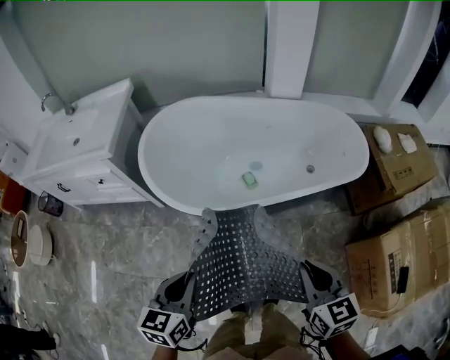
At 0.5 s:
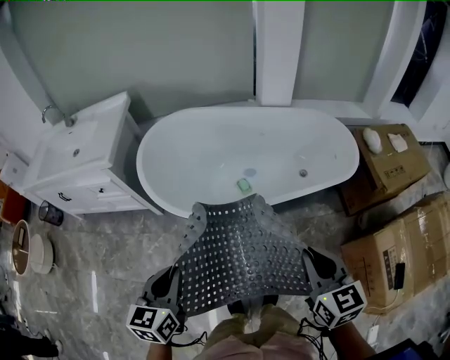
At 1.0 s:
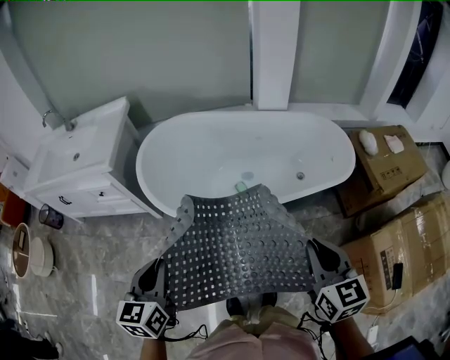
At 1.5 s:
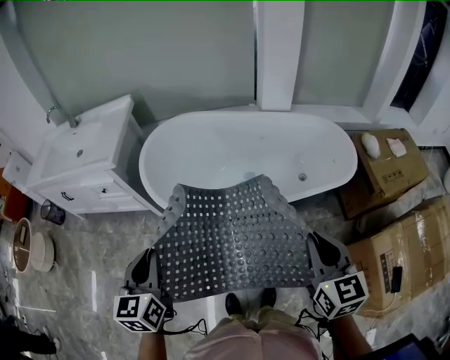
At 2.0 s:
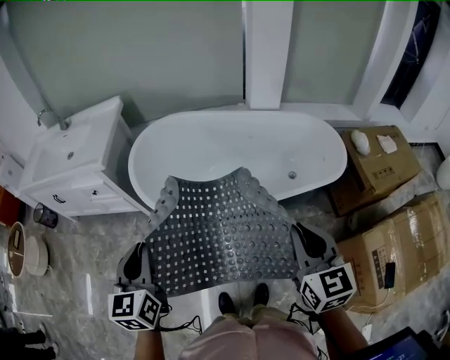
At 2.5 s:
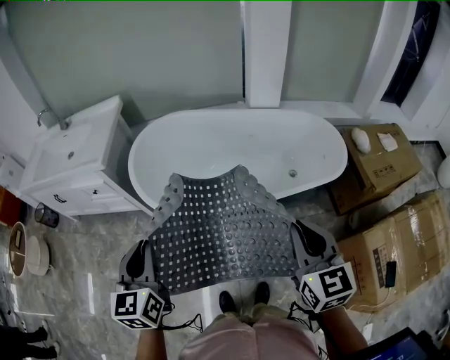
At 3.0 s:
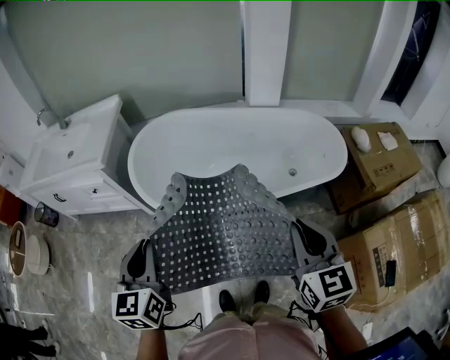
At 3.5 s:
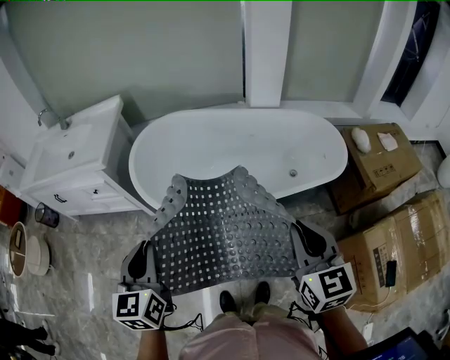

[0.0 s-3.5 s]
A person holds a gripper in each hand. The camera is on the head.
0.0 to 2.0 s: Both grippers travel together upward, roughly 10 cm. The left gripper rotates about 20 degrees.
2.0 to 3.5 s: The grippers move only a little.

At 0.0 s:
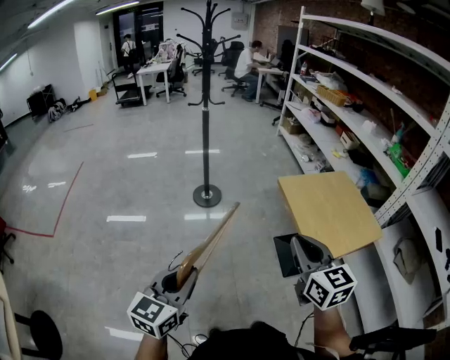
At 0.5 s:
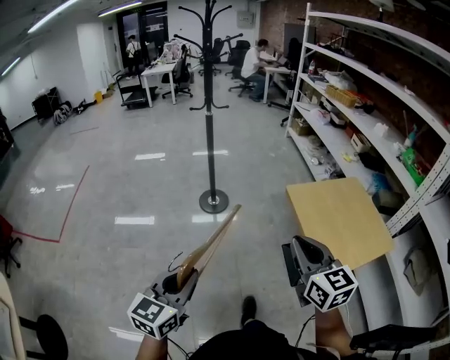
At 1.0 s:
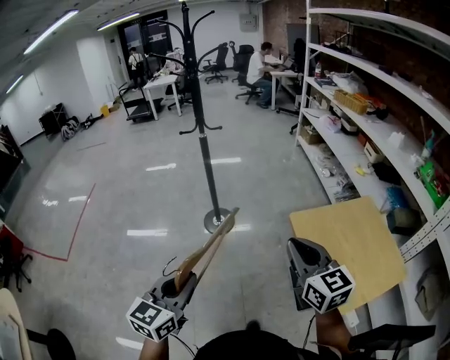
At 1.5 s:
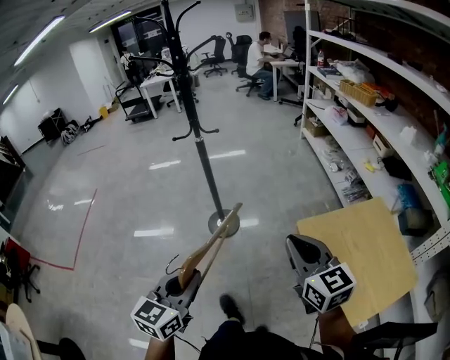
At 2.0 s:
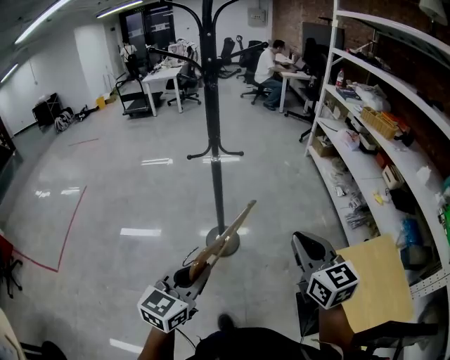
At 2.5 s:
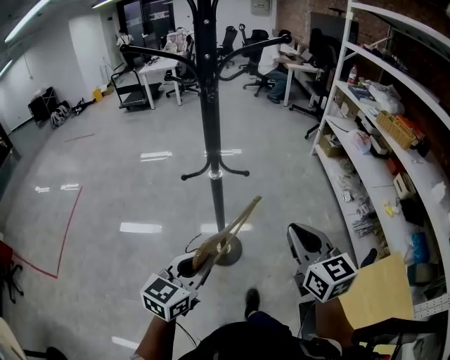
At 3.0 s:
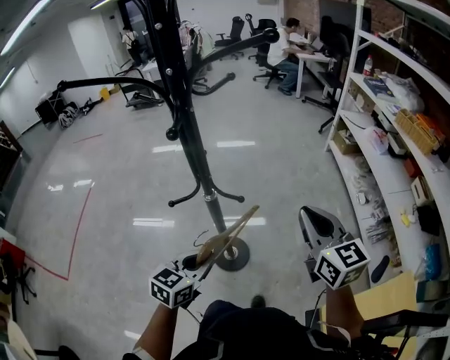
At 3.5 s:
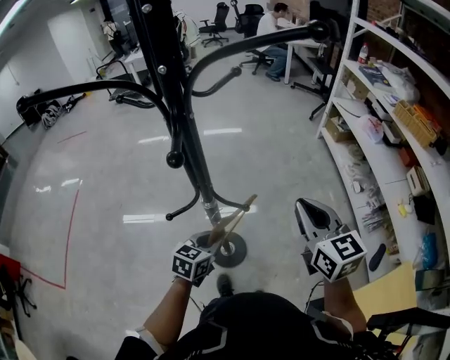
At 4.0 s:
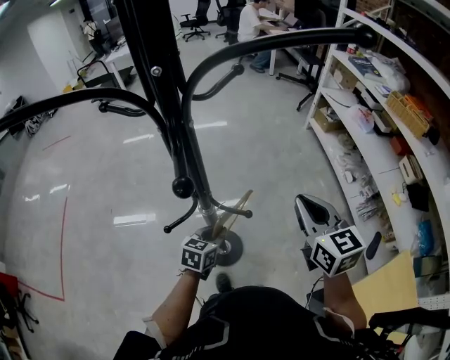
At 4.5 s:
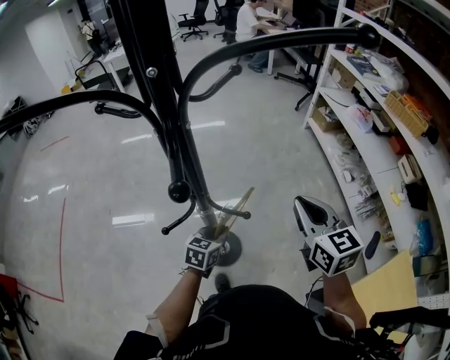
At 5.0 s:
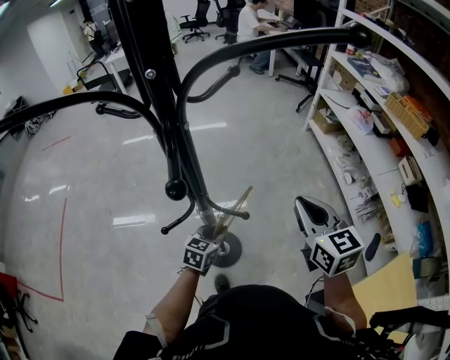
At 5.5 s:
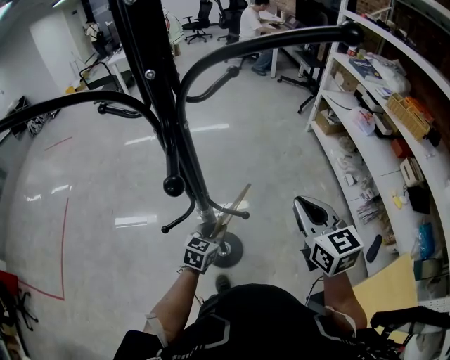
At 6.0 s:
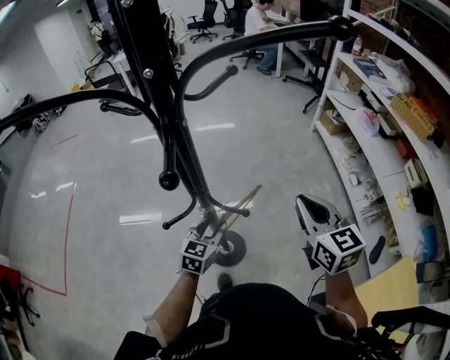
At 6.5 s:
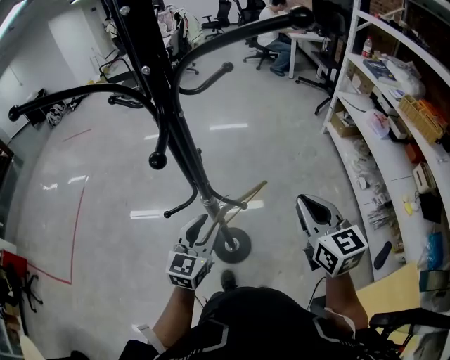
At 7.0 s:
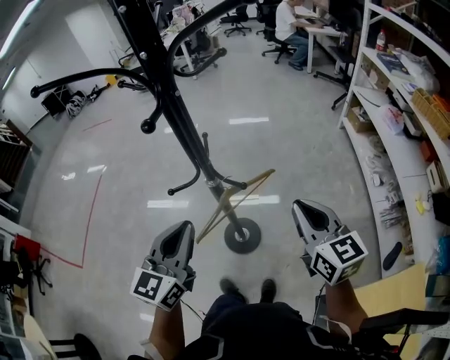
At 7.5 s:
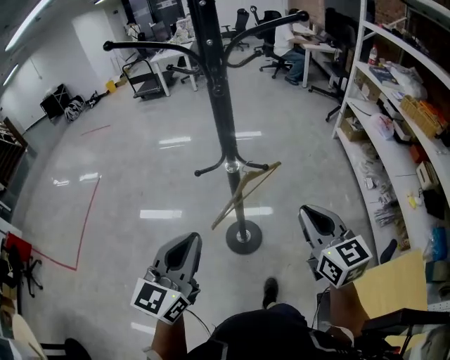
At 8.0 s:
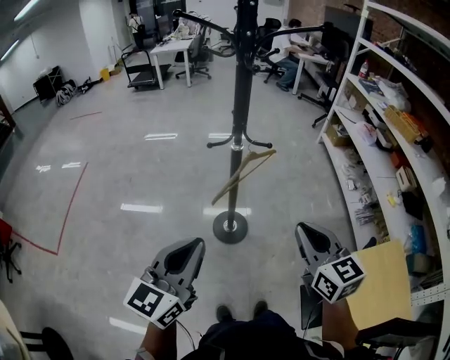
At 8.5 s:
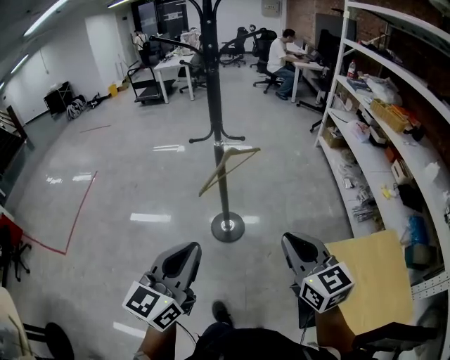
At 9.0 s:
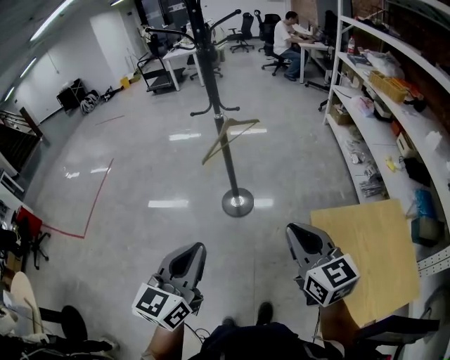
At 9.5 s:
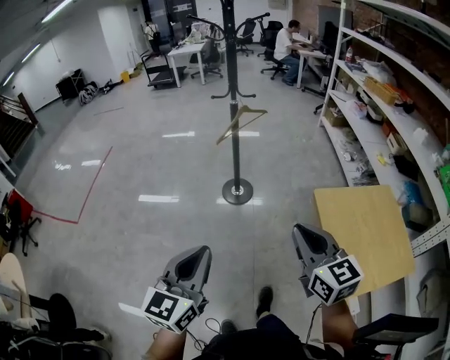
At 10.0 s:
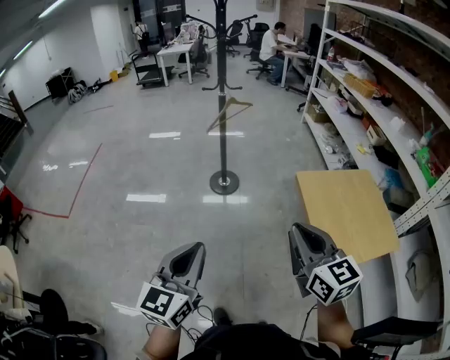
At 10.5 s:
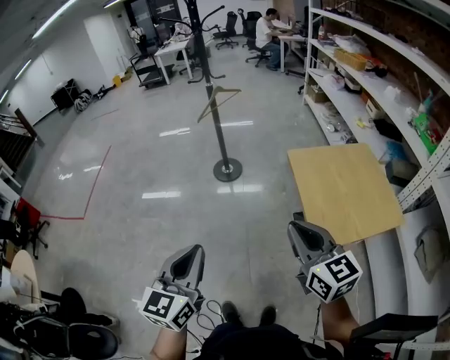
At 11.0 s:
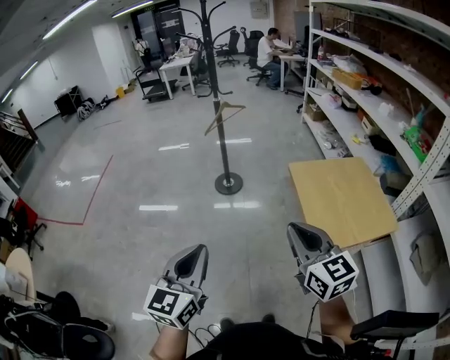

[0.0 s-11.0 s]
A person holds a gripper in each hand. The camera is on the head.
0.0 to 2.0 s: The two grippers travel together, forward, some 50 cm.
2.0 to 3.5 s: The left gripper is displaced forward and downward by approximately 40 cm, and swivels some 20 degrees. Meanwhile the right gripper is displaced forward by approximately 35 cm.
3.5 to 5.5 s: The left gripper shifts roughly 5 cm forward.
5.5 to 7.5 s: The left gripper travels upward and backward by about 40 cm, rotates approximately 30 degrees, and opens and closes again, while the right gripper is displaced backward by approximately 15 cm.
7.5 to 9.0 s: Both grippers move backward, some 35 cm.
9.0 to 11.0 s: The two grippers go roughly 35 cm backward.

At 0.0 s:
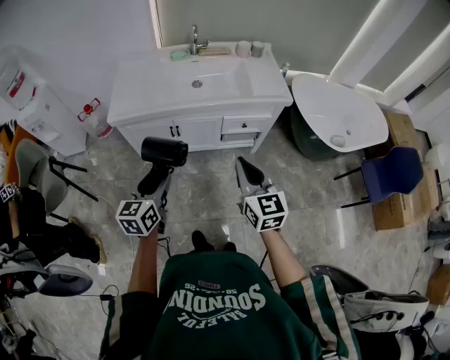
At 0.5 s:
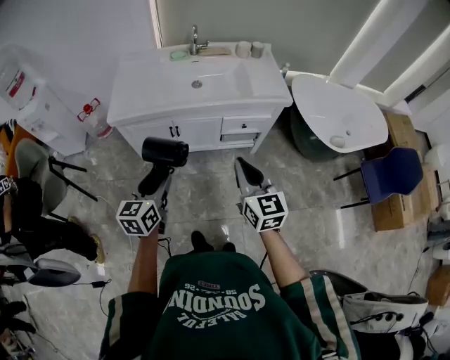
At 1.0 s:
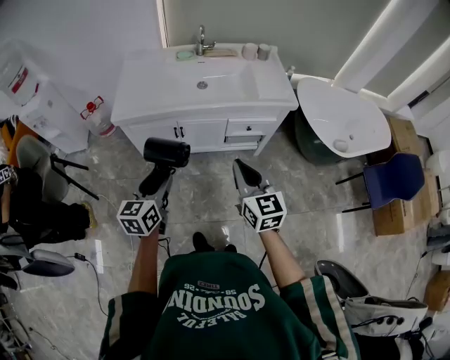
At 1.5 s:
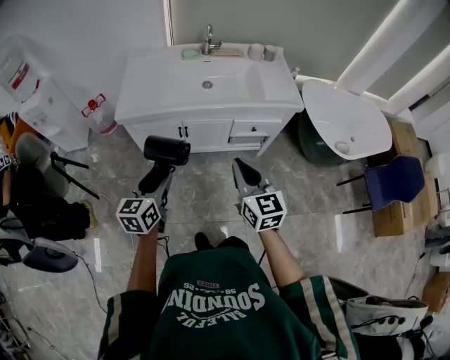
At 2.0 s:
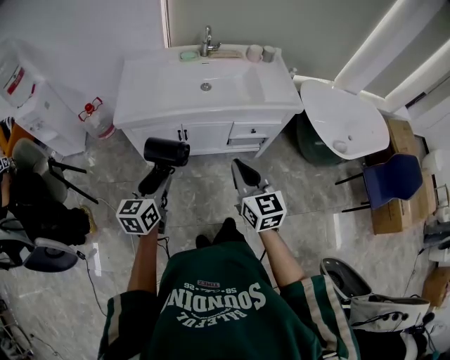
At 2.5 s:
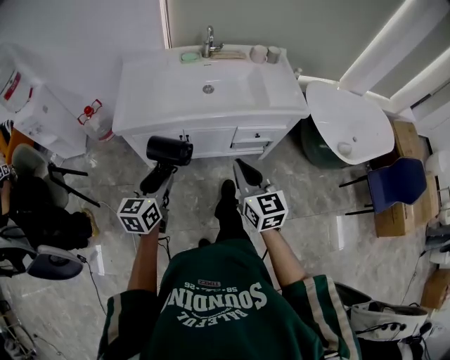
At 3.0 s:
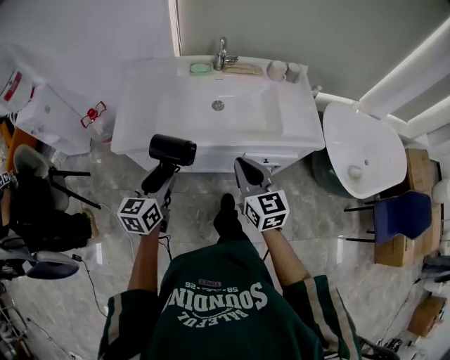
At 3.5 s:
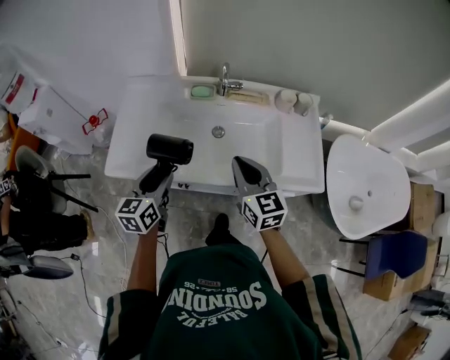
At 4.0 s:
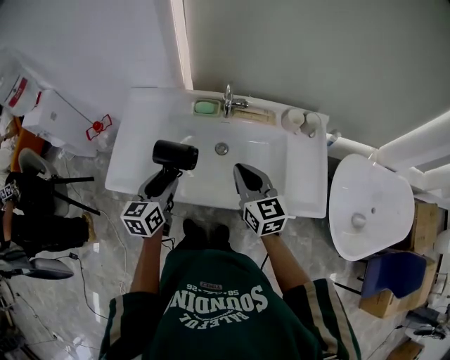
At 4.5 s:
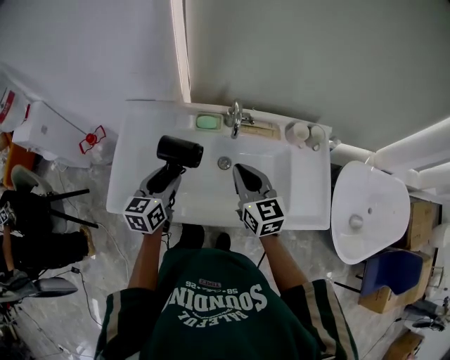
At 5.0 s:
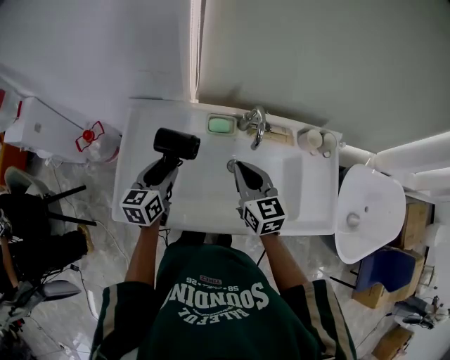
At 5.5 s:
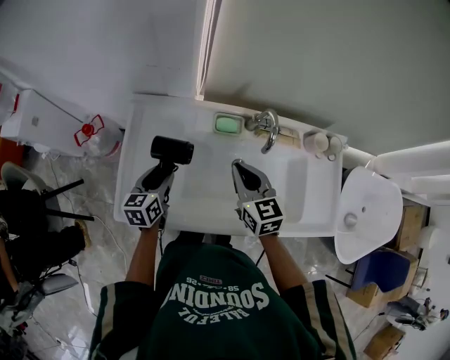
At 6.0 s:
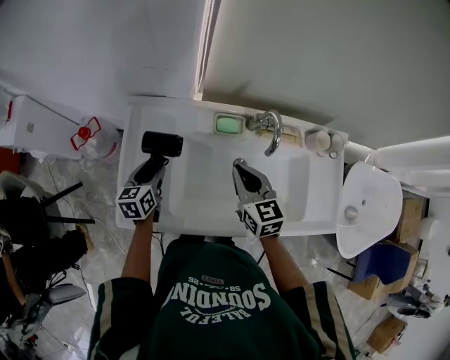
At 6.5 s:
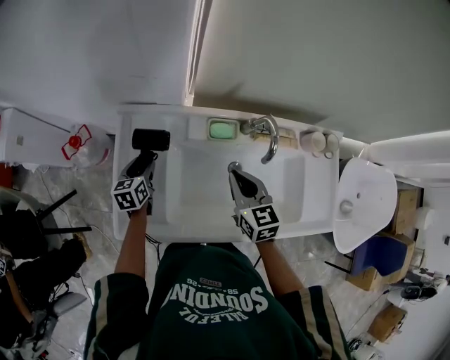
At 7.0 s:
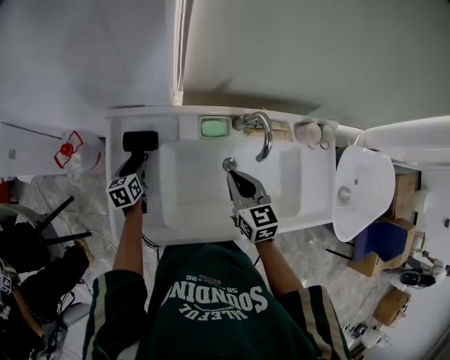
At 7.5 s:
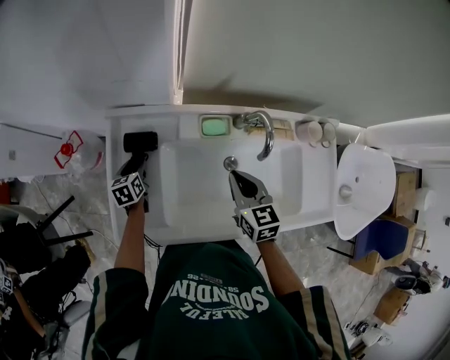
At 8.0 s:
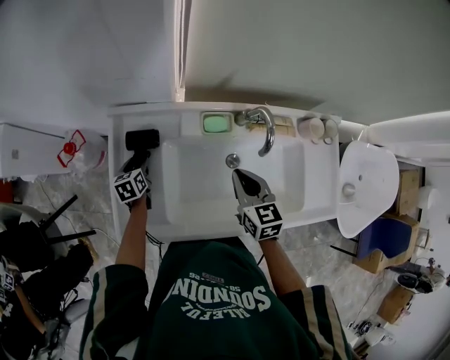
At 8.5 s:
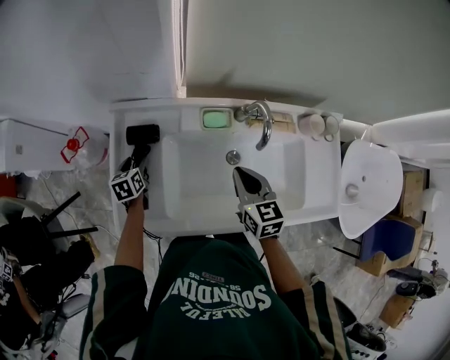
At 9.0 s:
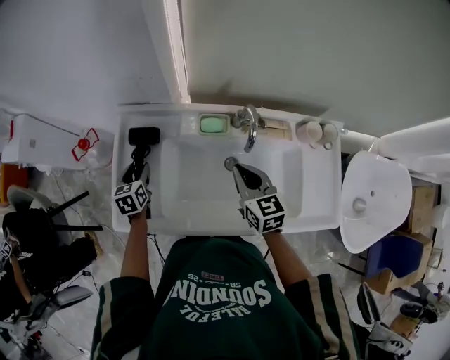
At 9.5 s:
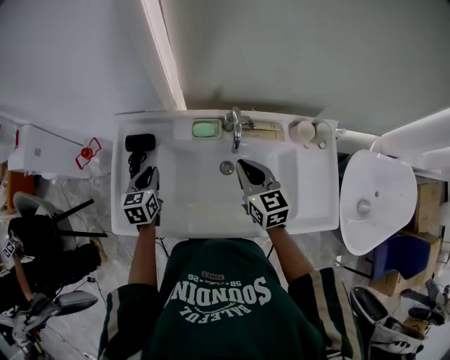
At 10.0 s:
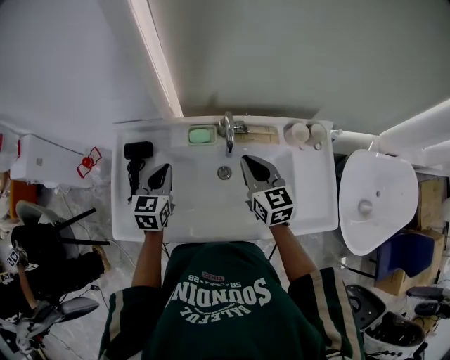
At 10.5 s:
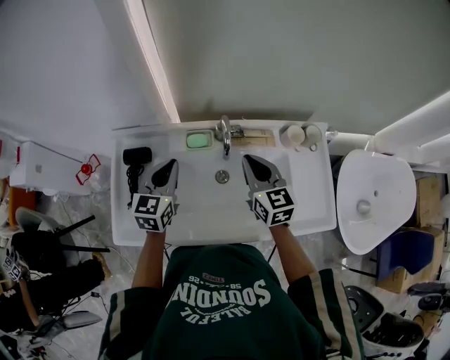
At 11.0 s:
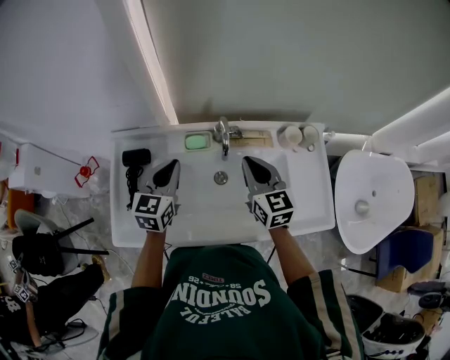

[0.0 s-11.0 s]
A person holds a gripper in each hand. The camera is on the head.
0.0 to 2.0 s: Both grippers travel together to the left, approximately 5 cm.
2.0 to 3.5 s: The two grippers go some 35 cm forward.
3.5 to 5.5 s: The right gripper travels forward and to the left by some 25 cm. Meanwhile the left gripper goes some 25 cm forward, to the left and downward.
5.5 to 7.5 s: The right gripper ends up about 5 cm from where it was, while the left gripper travels downward, forward and to the left by approximately 20 cm.
7.5 to 9.0 s: The right gripper changes place by approximately 5 cm; the left gripper is displaced upward and backward by approximately 10 cm.
9.0 to 11.0 s: The left gripper moves to the right and upward, some 25 cm, changes its angle by approximately 40 degrees, and closes up; the right gripper moves to the right and upward, approximately 10 cm.

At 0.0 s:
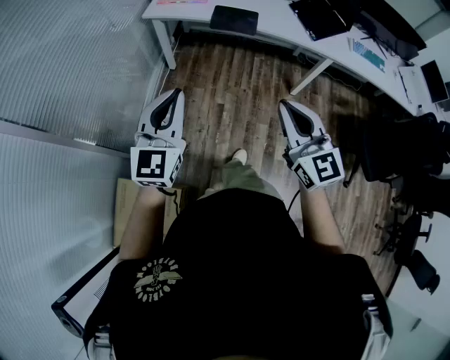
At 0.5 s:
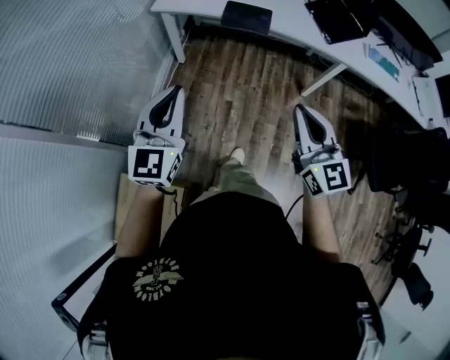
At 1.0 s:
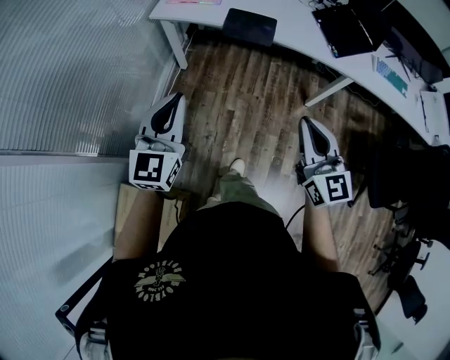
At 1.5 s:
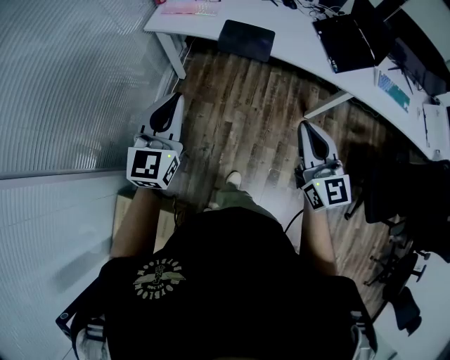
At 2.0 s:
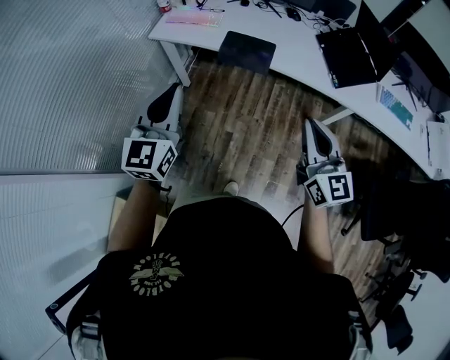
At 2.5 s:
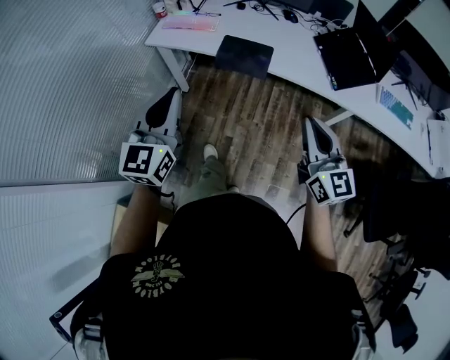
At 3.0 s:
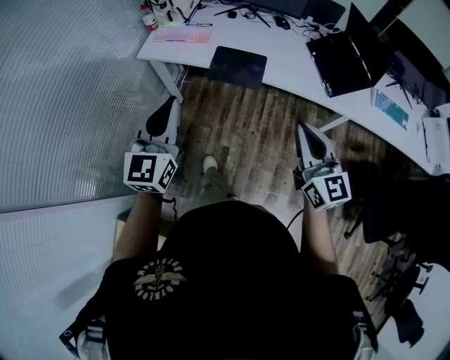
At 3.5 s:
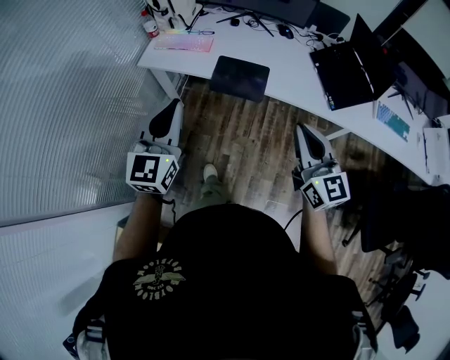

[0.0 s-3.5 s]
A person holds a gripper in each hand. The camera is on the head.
0.0 to 2.0 s: The right gripper travels forward and to the right by roughly 30 cm, while the left gripper heads forward, covering roughly 30 cm.
2.0 to 3.5 s: Both grippers travel together forward, roughly 10 cm.
